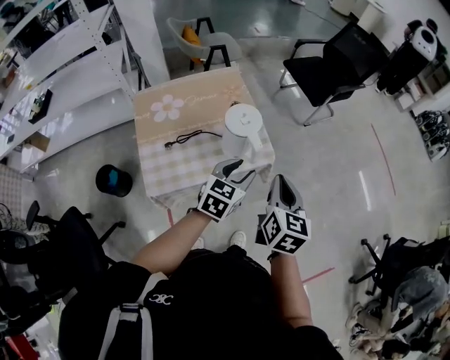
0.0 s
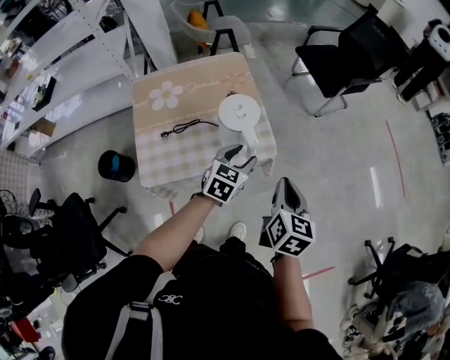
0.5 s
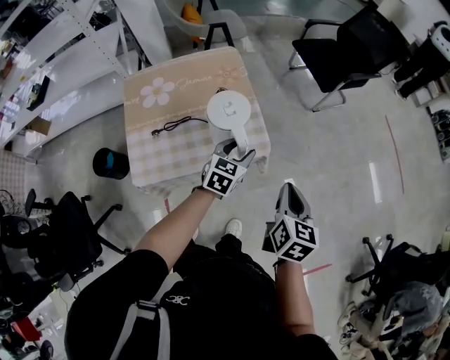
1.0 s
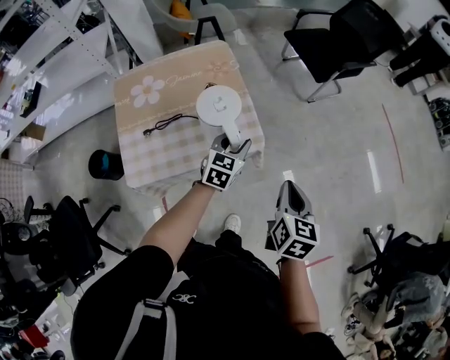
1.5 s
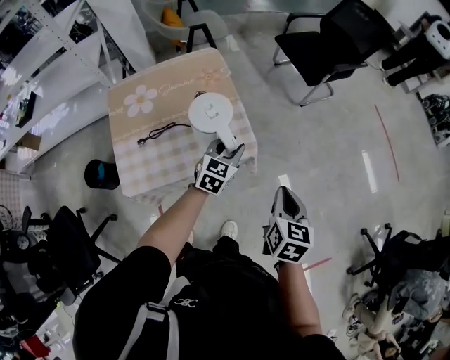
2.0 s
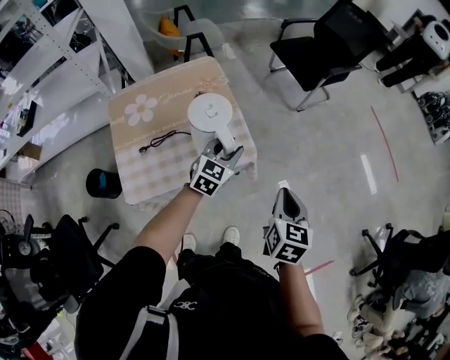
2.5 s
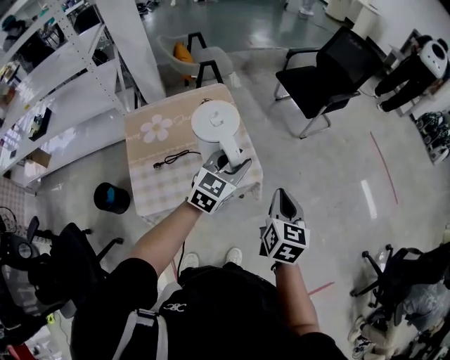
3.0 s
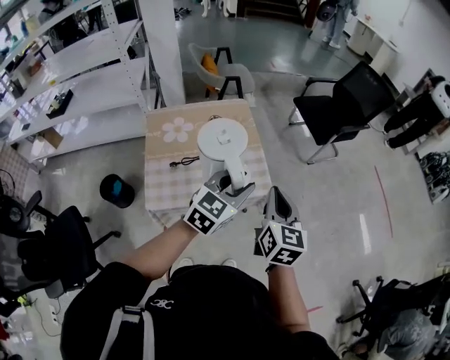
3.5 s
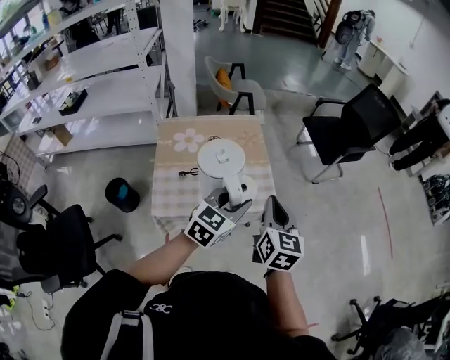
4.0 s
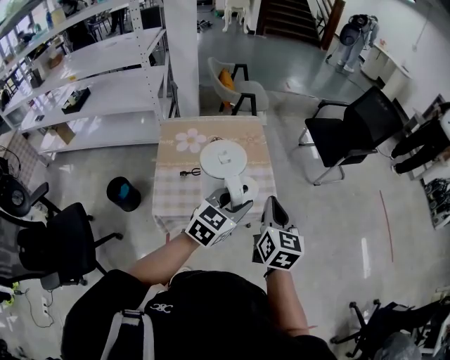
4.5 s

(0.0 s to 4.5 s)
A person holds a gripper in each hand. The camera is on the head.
0.0 s - 2.0 s: The right gripper moves to the right and downward, approximately 15 cm. The left gripper shifts some 15 cm forward and downward.
2.0 s - 4.5 s: The right gripper moves to the left and upward, about 20 cm, and turns by about 30 degrees. The left gripper moves upward and backward, roughly 20 cm.

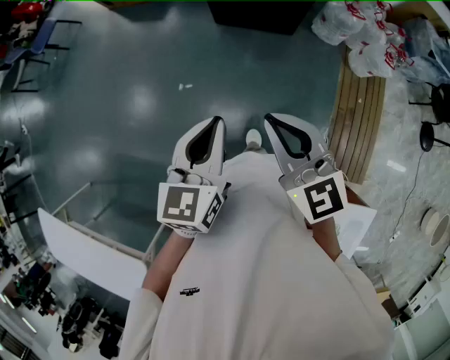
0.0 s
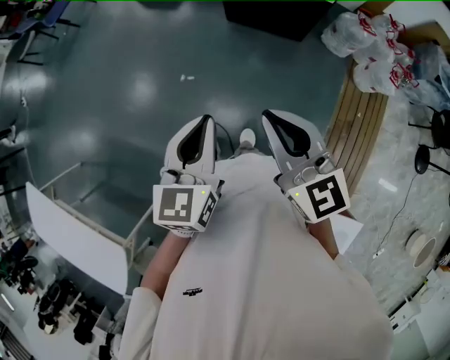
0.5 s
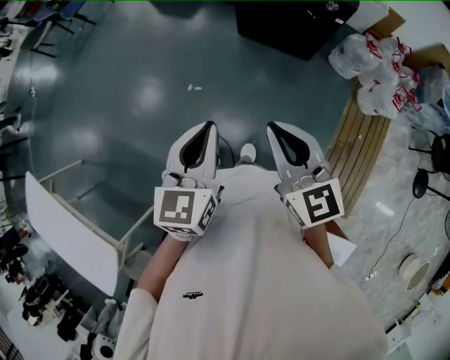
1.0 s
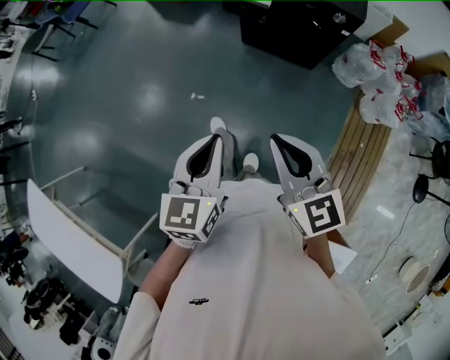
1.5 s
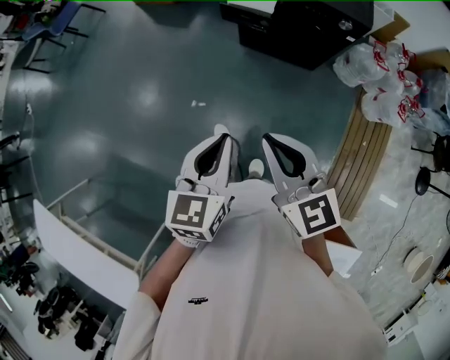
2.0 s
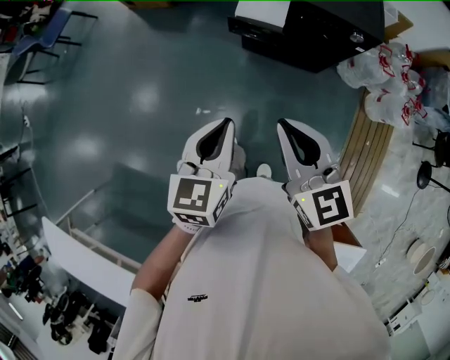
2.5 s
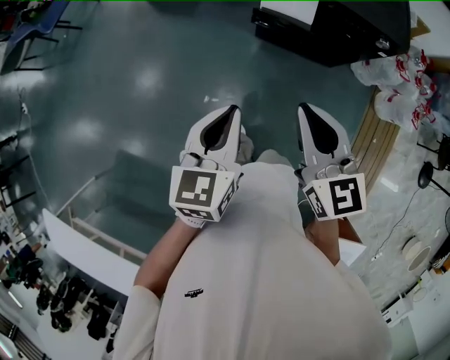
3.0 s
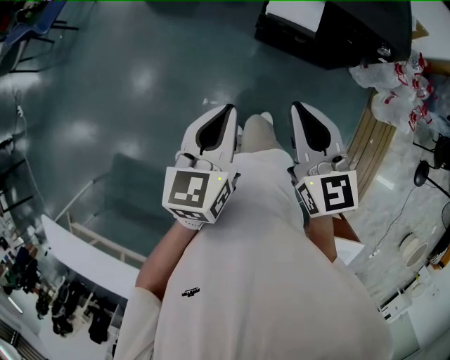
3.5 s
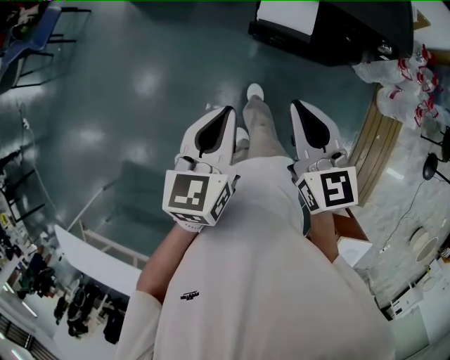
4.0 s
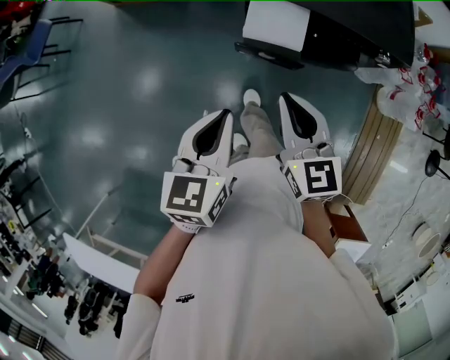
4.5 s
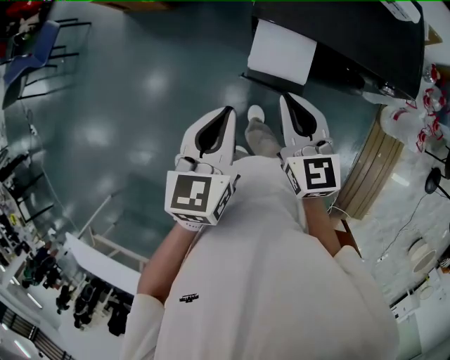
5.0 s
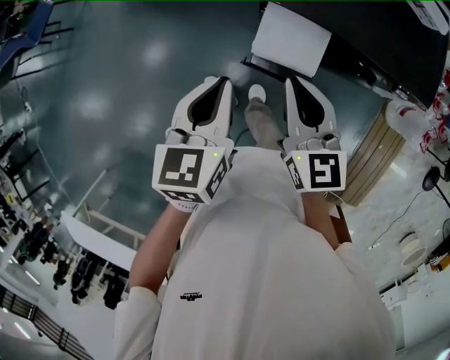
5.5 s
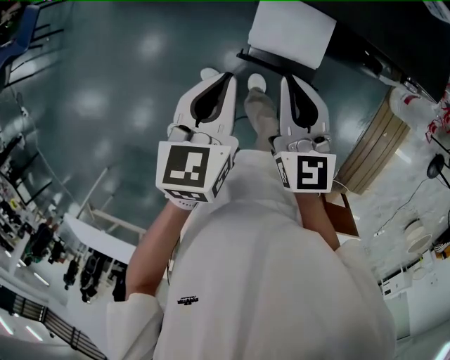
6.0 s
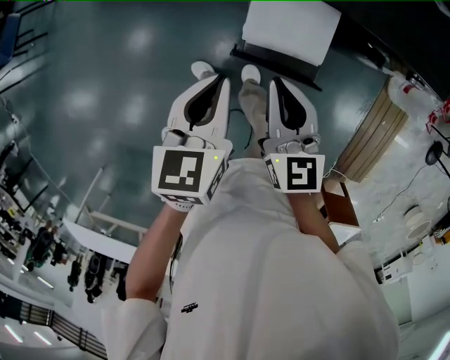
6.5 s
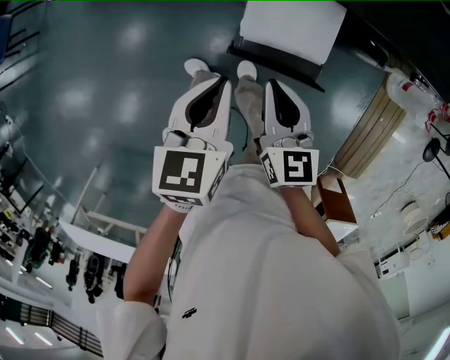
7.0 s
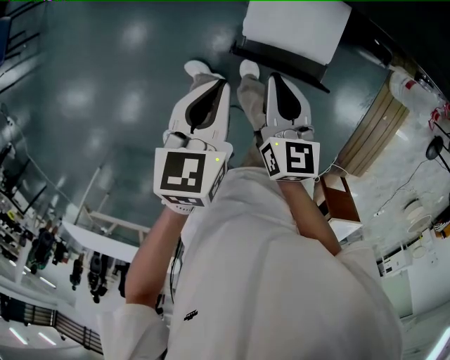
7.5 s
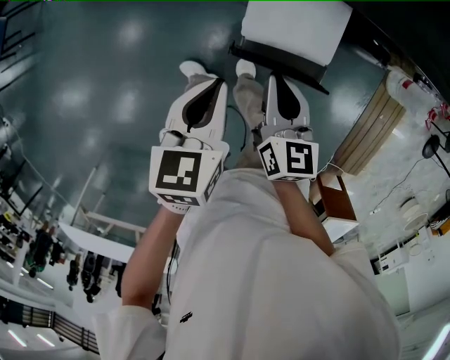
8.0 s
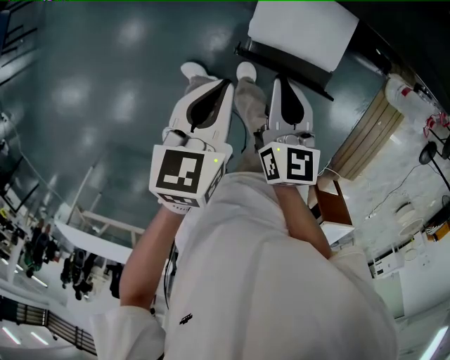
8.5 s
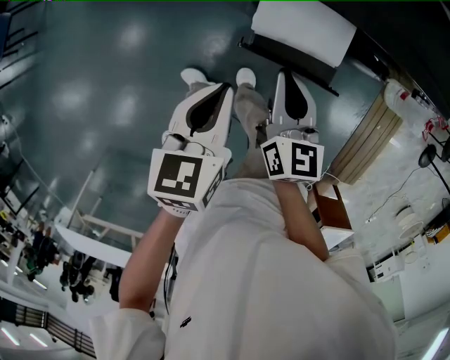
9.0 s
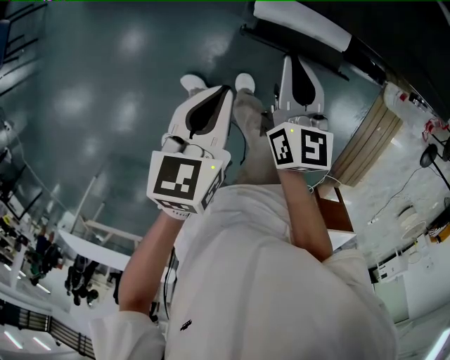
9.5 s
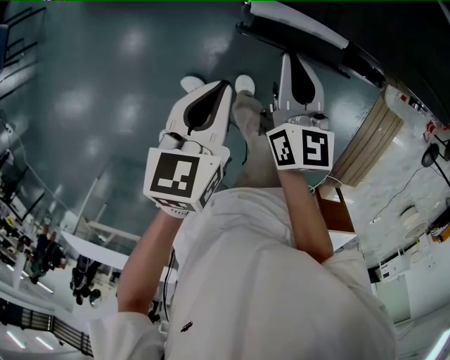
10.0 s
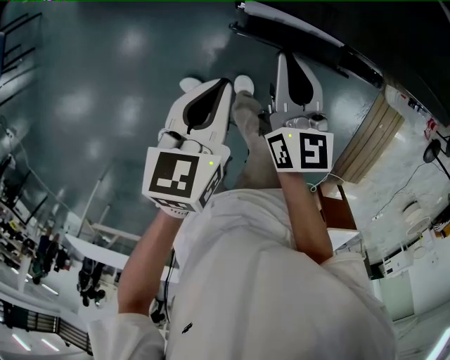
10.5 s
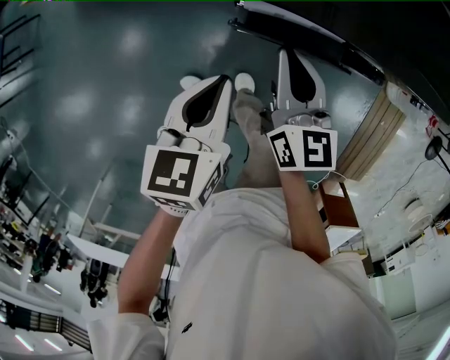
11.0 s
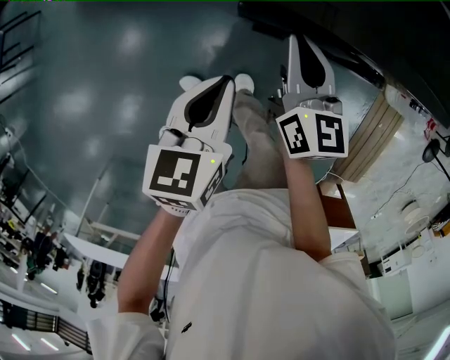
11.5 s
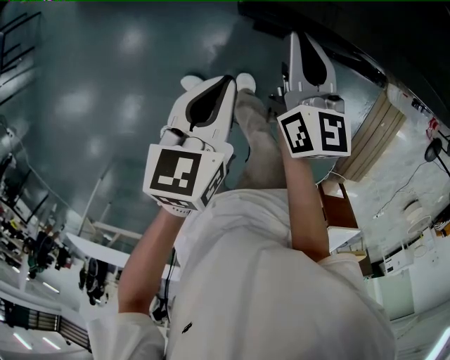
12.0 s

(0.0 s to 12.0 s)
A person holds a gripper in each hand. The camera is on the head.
0.0 s - 2.0 s: Both grippers move forward, approximately 15 cm.
2.0 s - 4.0 s: The two grippers go about 25 cm forward.
4.0 s - 6.0 s: The left gripper is displaced forward by roughly 20 cm. Meanwhile the right gripper moves forward and downward, some 25 cm.
6.0 s - 8.0 s: The grippers both shift downward by approximately 10 cm.
8.0 s - 10.0 s: The right gripper heads forward, covering about 10 cm. The left gripper goes roughly 5 cm forward.
10.0 s - 12.0 s: The grippers make only small movements.

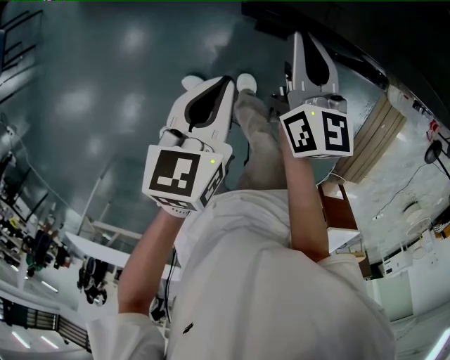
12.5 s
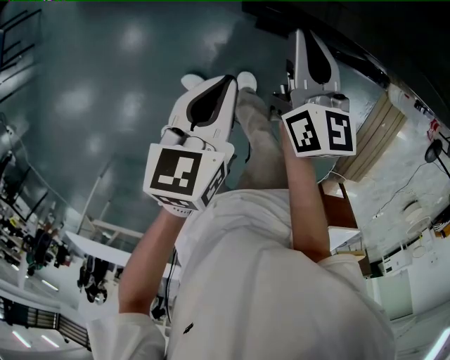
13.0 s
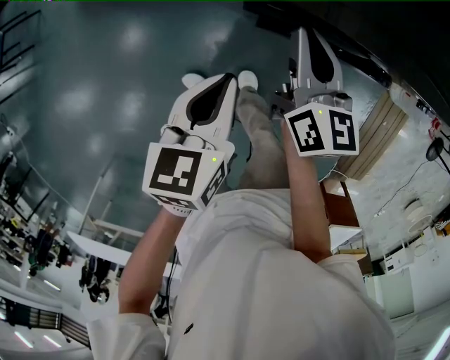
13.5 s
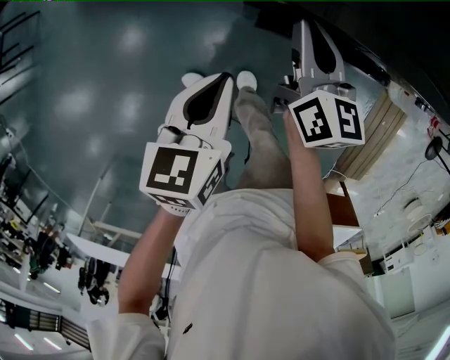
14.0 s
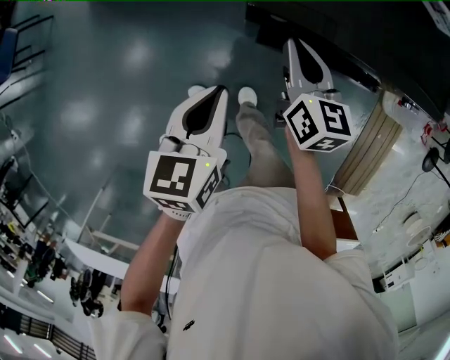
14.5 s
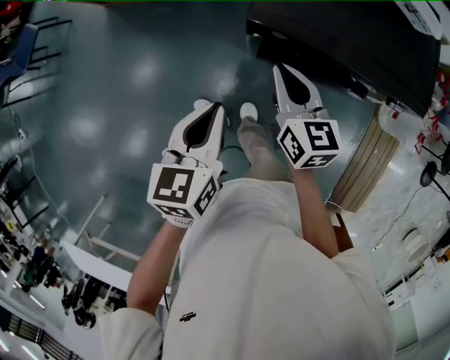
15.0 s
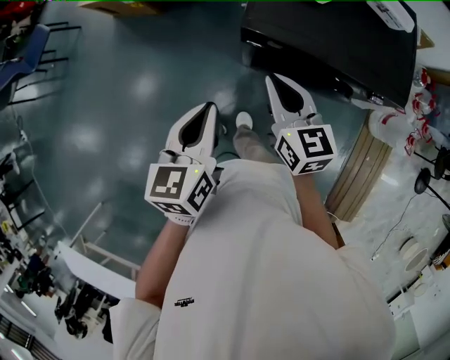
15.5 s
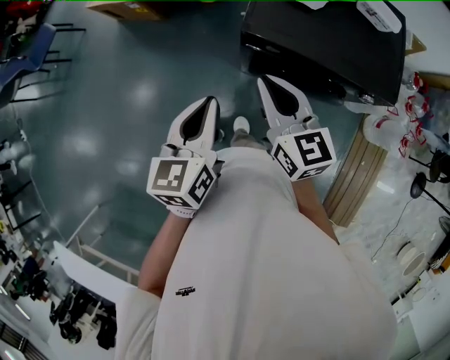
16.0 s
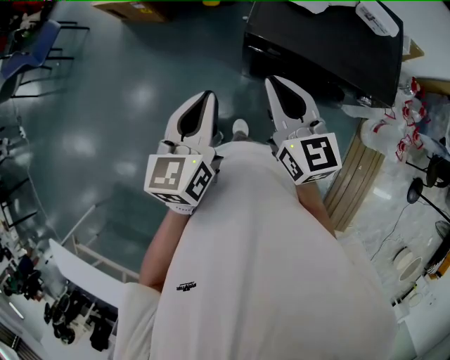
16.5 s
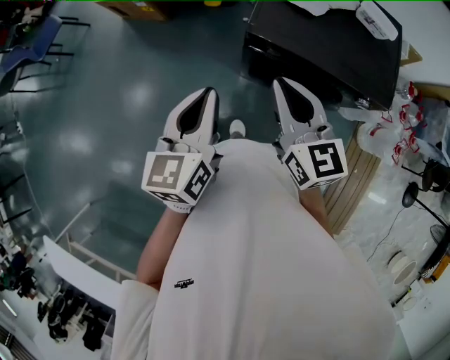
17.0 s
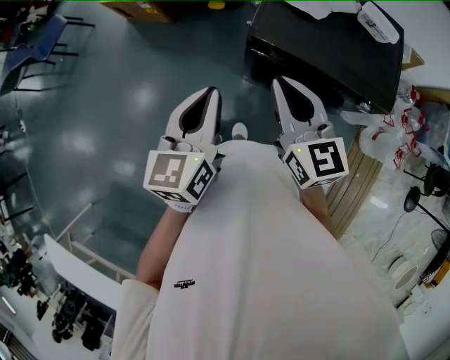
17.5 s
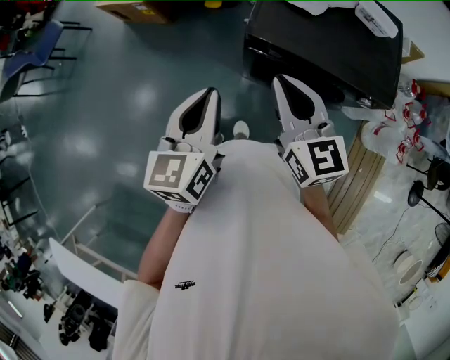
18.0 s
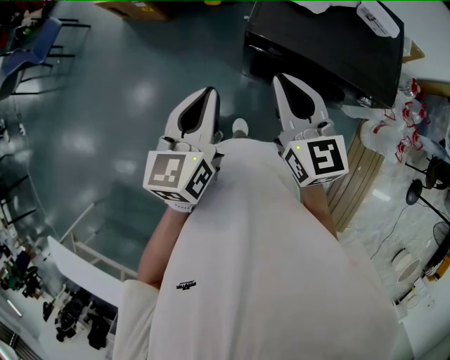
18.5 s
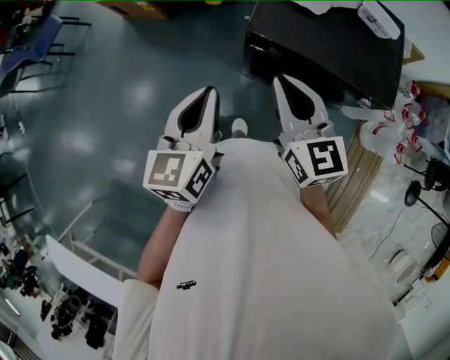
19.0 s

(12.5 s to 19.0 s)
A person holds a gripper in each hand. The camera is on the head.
12.5 s - 14.5 s: There are only small adjustments of the grippers.
14.5 s - 17.0 s: The right gripper heads upward and backward, covering roughly 25 cm, and rotates roughly 30 degrees. The left gripper heads upward, covering approximately 20 cm, and swivels roughly 20 degrees.
17.0 s - 19.0 s: Both grippers stay about where they are.

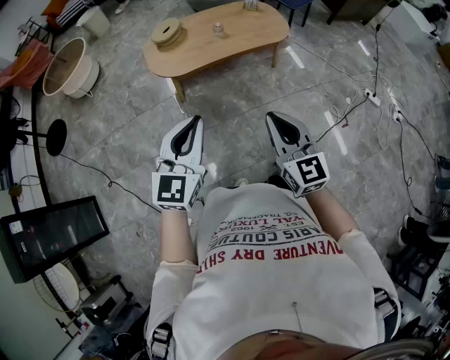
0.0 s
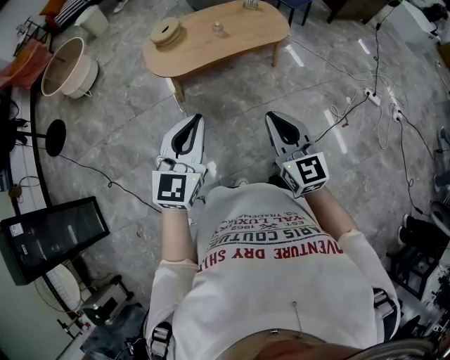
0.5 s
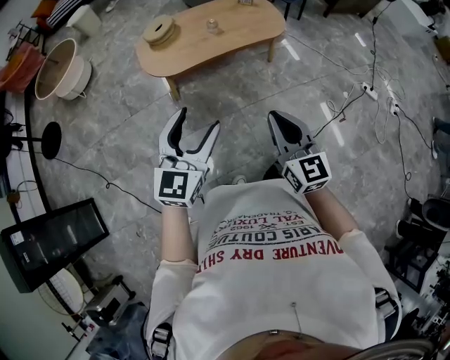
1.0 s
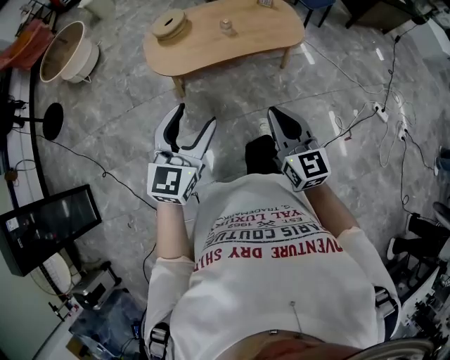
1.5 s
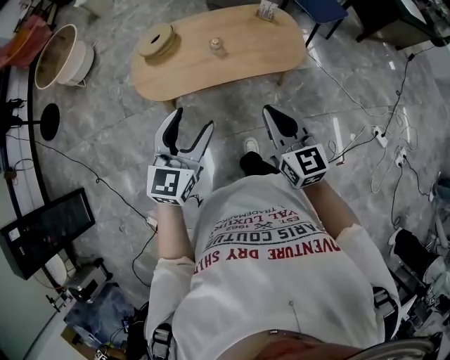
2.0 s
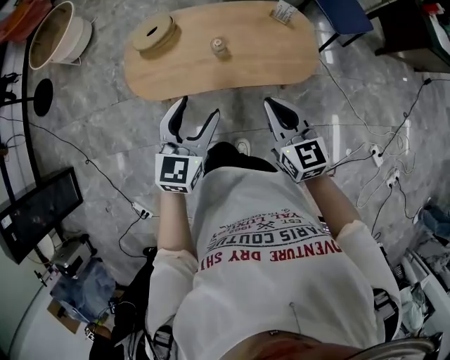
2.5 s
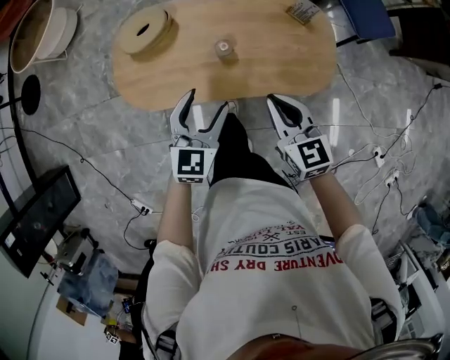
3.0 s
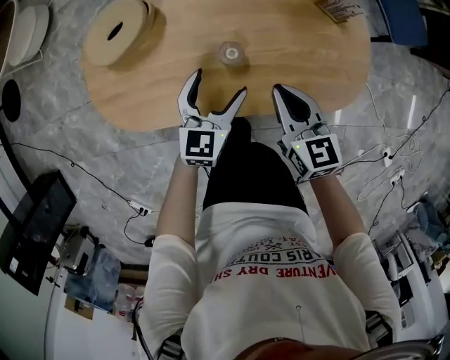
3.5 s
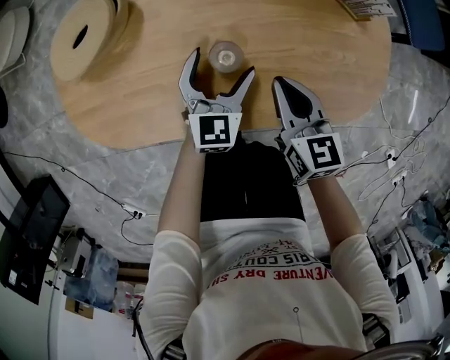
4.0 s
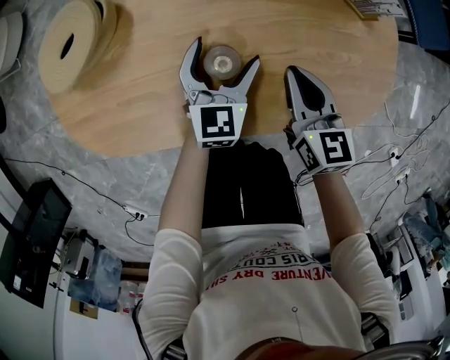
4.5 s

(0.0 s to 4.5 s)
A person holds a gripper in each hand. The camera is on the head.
0.0 s - 2.0 s: Both grippers travel together forward, roughly 35 cm. The left gripper opens its fingers.
2.0 s - 4.5 s: Both grippers are carried forward, some 40 cm. The grippers both shift downward by about 50 cm.
